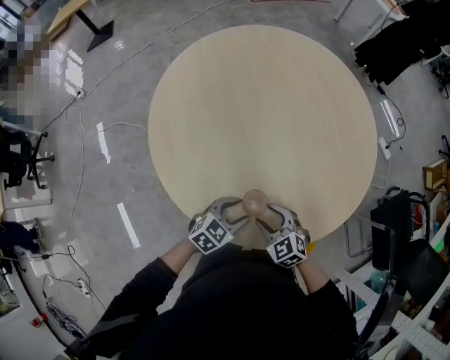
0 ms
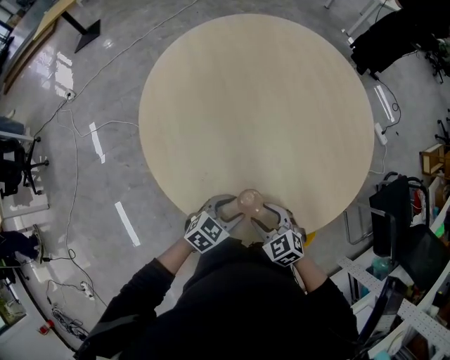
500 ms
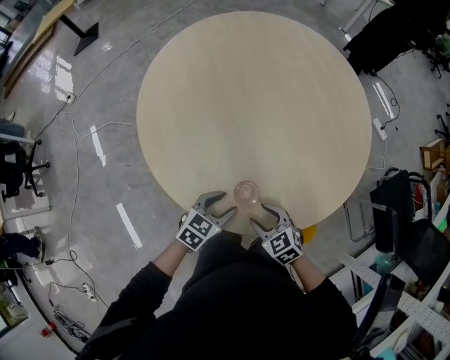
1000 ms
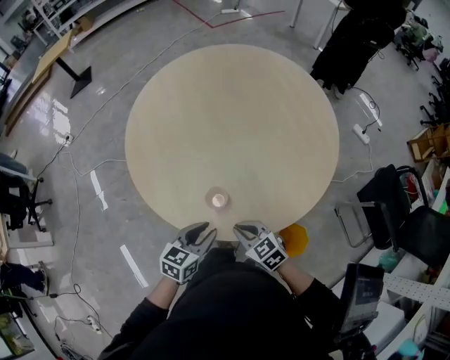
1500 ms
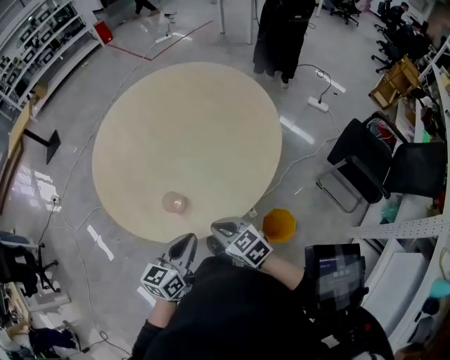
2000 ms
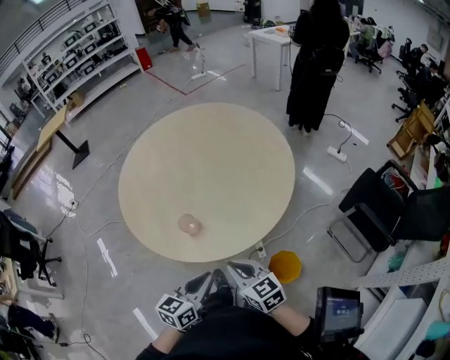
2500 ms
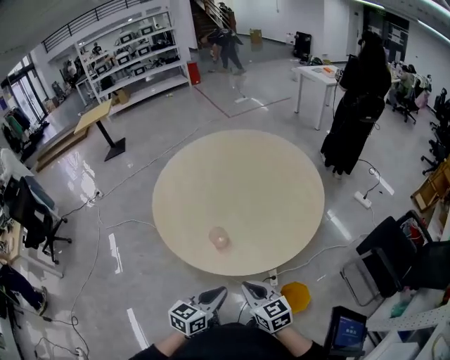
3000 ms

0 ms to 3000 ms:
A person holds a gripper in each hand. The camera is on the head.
0 ms to 1500 ms: The left gripper goes approximately 10 cm backward and upward, rotates about 20 degrees, and closes; the right gripper goes approximately 10 cm backward, rotates some 20 degrees, and closes its fingers.
1500 ms to 3000 ms: The right gripper shifts about 20 cm backward, upward and to the right, and changes its angle by roughly 20 degrees. Meanwhile the left gripper shifts about 20 cm backward, to the right and upward, and closes its fingers.

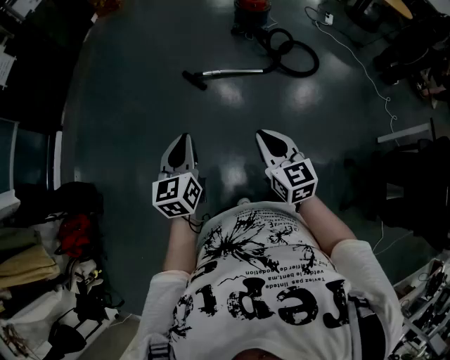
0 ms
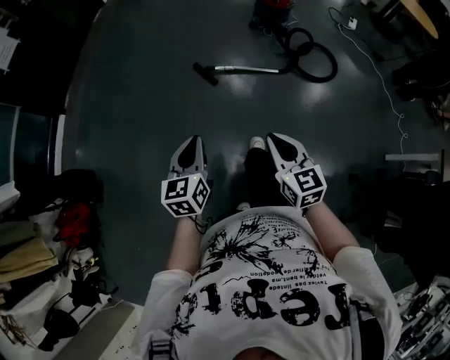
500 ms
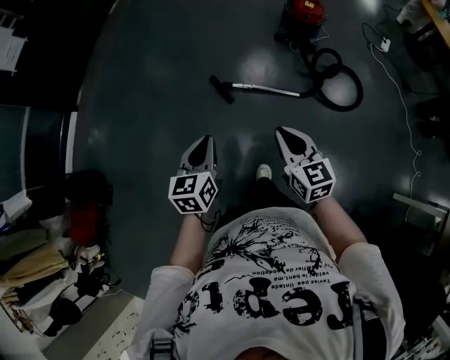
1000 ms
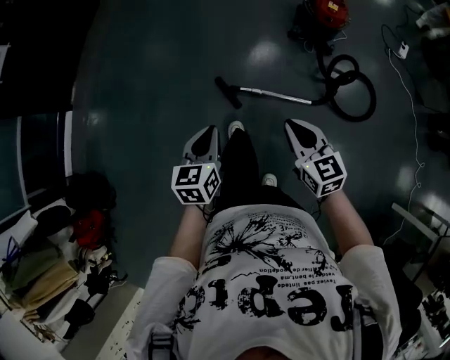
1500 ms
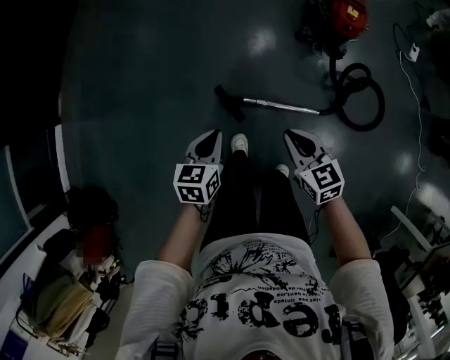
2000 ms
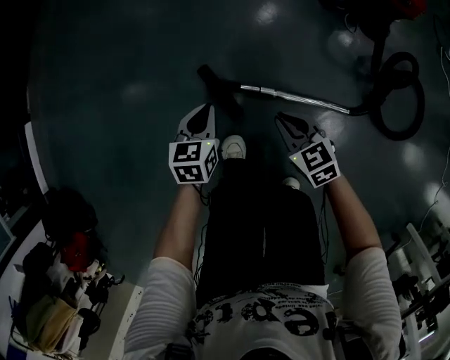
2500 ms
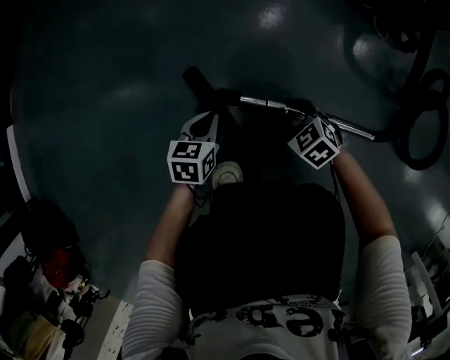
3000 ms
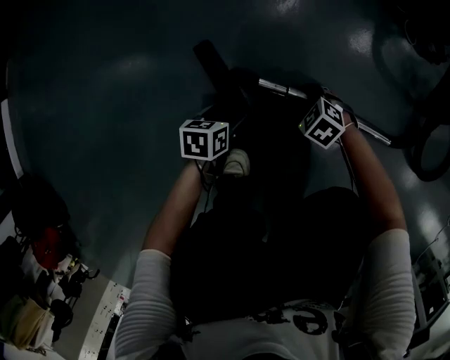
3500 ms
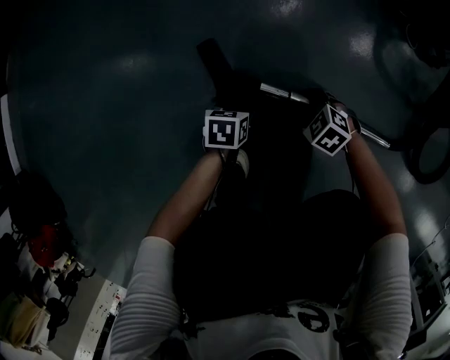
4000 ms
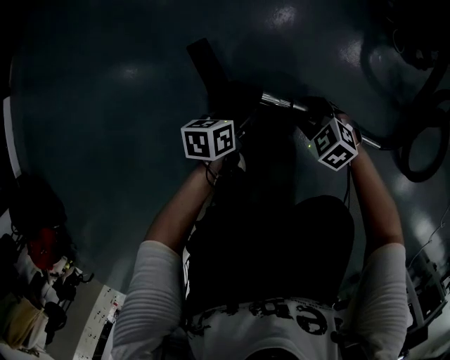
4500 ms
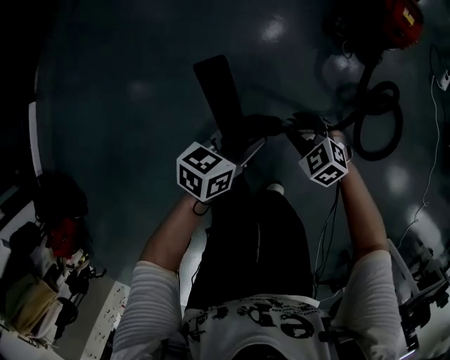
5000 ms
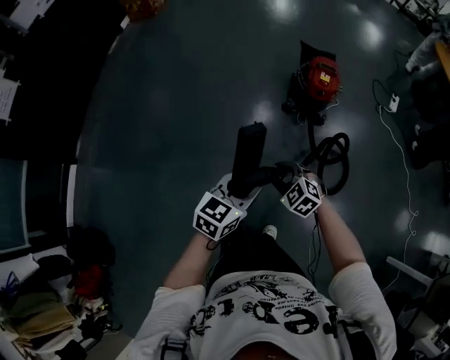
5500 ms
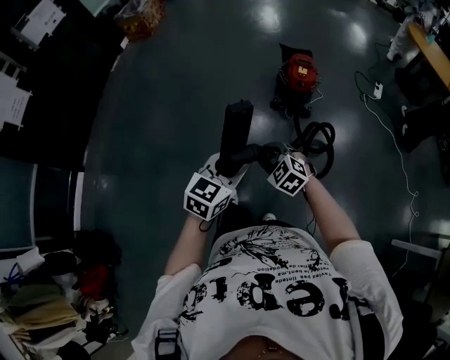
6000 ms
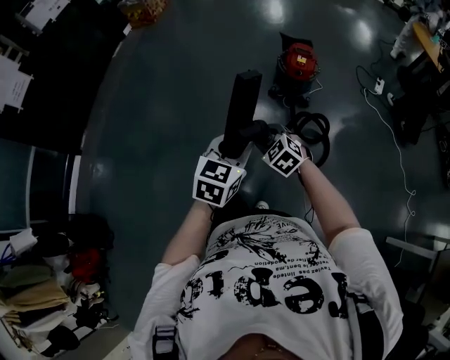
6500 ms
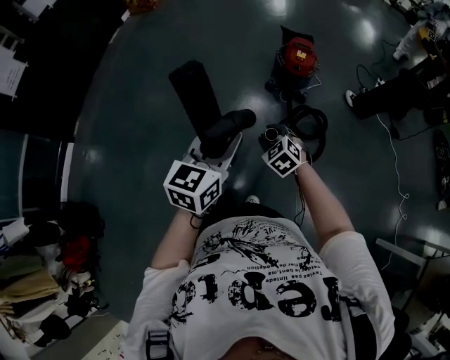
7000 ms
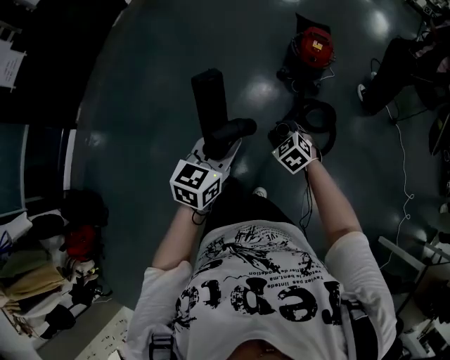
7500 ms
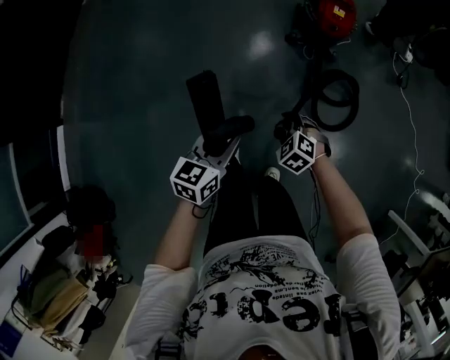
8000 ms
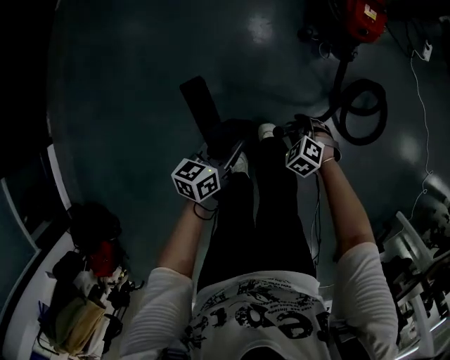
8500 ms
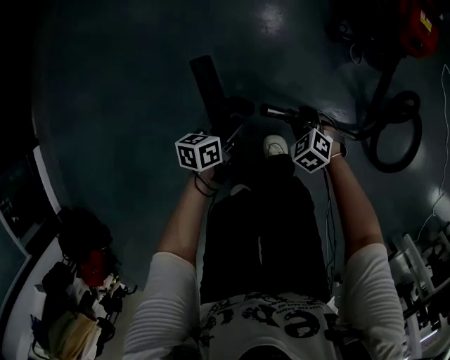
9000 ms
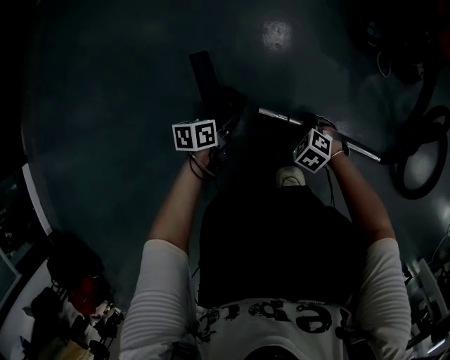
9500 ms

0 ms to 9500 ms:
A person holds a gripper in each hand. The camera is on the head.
0 ms to 2000 ms: Both grippers are carried forward, roughly 70 cm. The right gripper changes its angle by about 20 degrees, while the left gripper changes its angle by roughly 30 degrees.
2000 ms to 4000 ms: The grippers both shift downward by about 70 cm. The right gripper angles its fingers downward, by roughly 30 degrees, and opens up. Meanwhile the left gripper turns by about 30 degrees, and opens.
4000 ms to 5500 ms: Both grippers travel together upward, about 80 cm. The right gripper swivels about 20 degrees. Meanwhile the left gripper points its fingers about 40 degrees further upward, and closes its fingers.
5500 ms to 7500 ms: The right gripper is displaced to the right and backward by some 10 cm. Meanwhile the left gripper moves backward and upward, about 10 cm.
7500 ms to 9500 ms: The two grippers go some 80 cm downward. The left gripper twists some 40 degrees counterclockwise, seen from behind; the right gripper changes its angle by approximately 20 degrees.

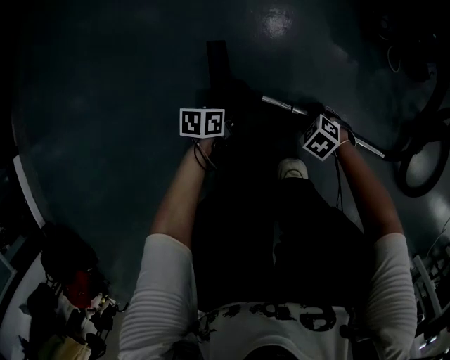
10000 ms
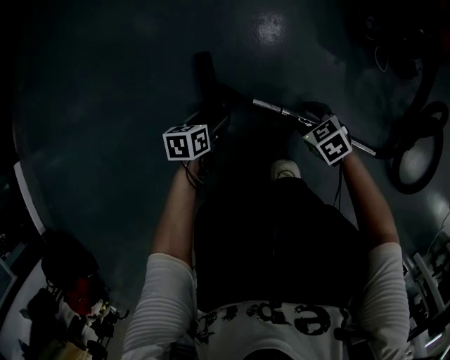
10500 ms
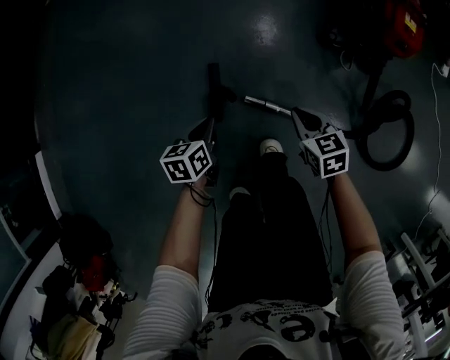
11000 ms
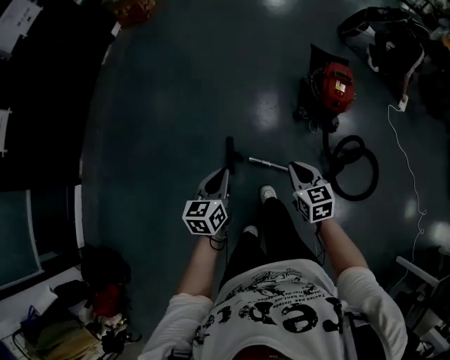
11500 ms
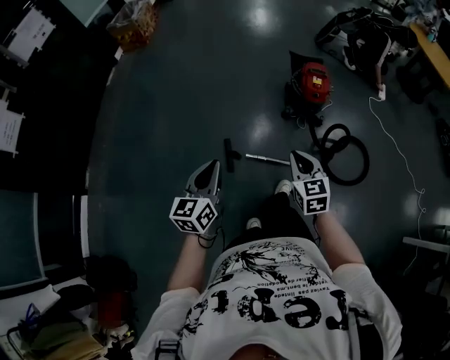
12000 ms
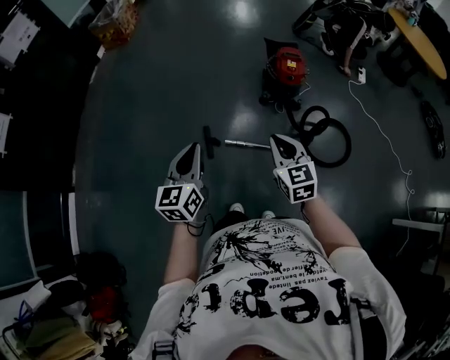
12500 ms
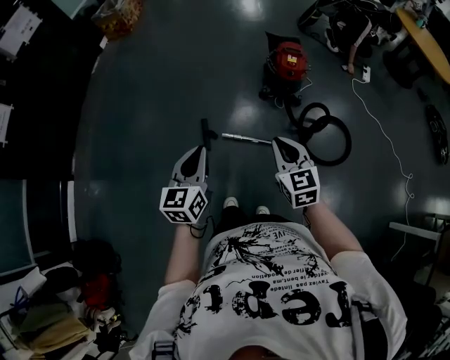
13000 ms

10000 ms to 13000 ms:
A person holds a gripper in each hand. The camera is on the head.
10000 ms to 11500 ms: The grippers both shift upward by roughly 80 cm. The right gripper angles its fingers upward, by roughly 40 degrees, and closes. The left gripper swivels some 40 degrees, and opens and closes again.
11500 ms to 13000 ms: Both grippers travel together backward, upward and to the right, roughly 30 cm.

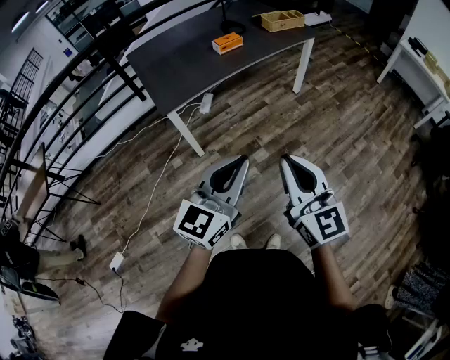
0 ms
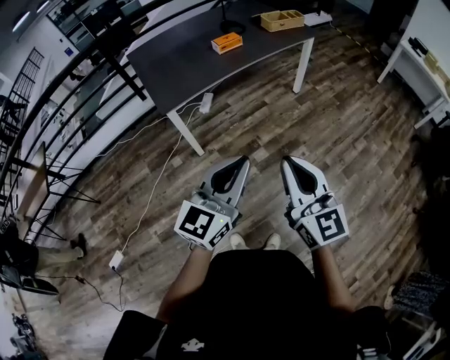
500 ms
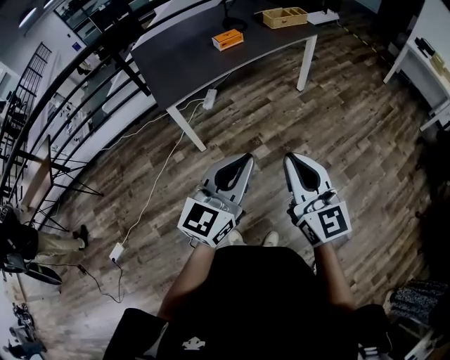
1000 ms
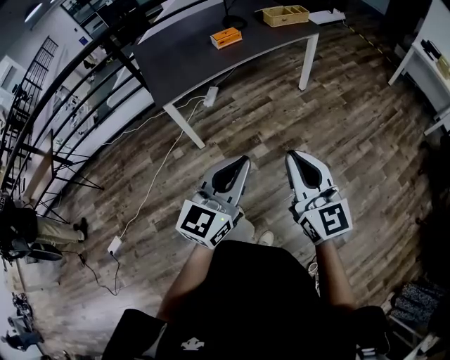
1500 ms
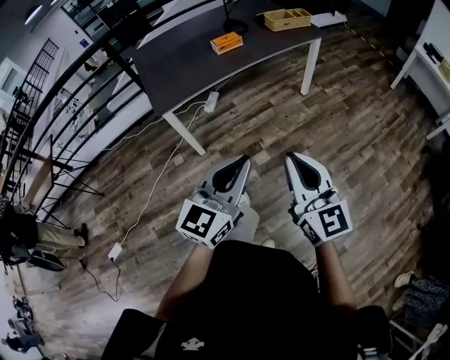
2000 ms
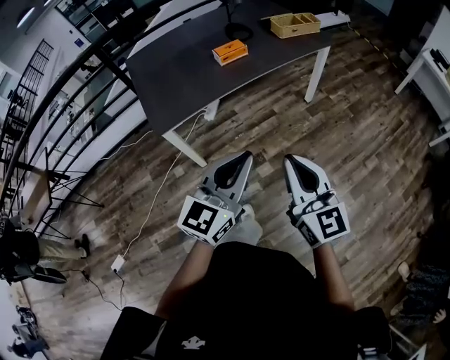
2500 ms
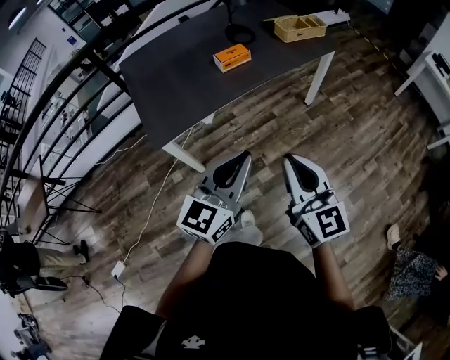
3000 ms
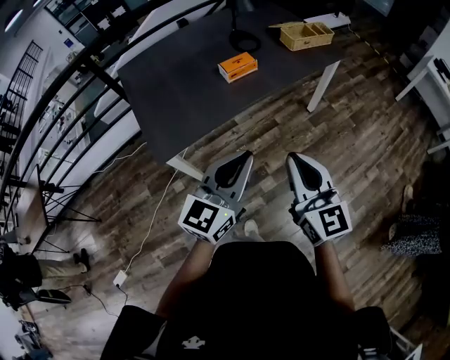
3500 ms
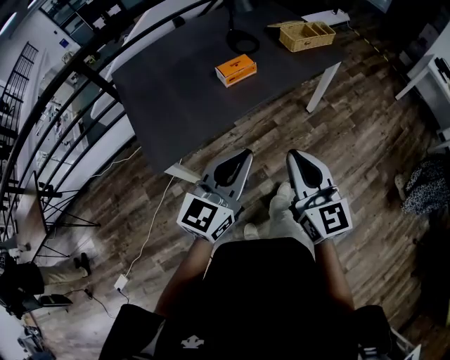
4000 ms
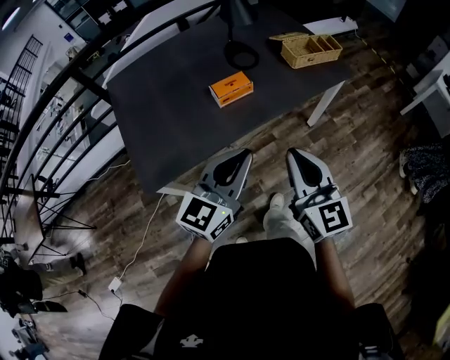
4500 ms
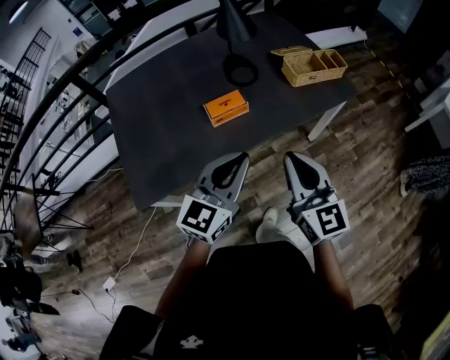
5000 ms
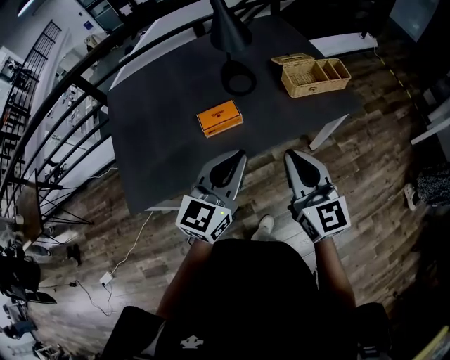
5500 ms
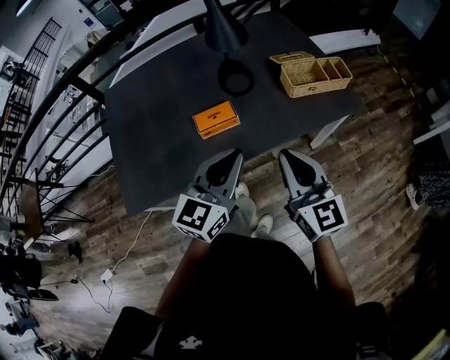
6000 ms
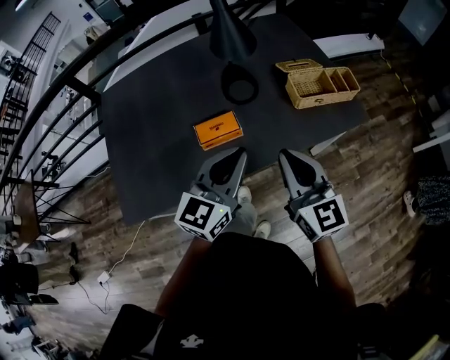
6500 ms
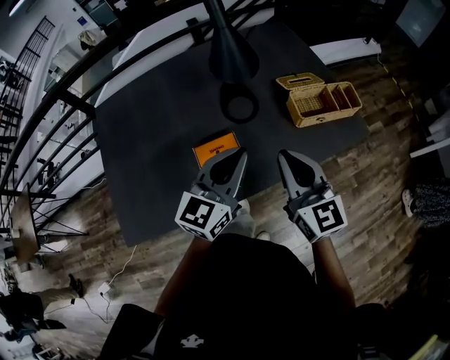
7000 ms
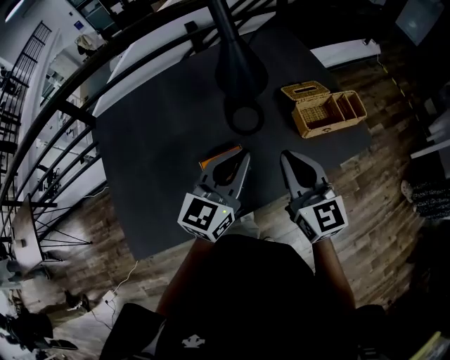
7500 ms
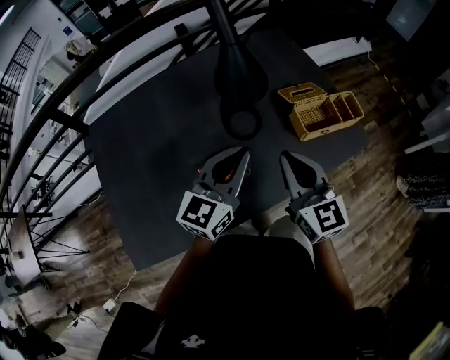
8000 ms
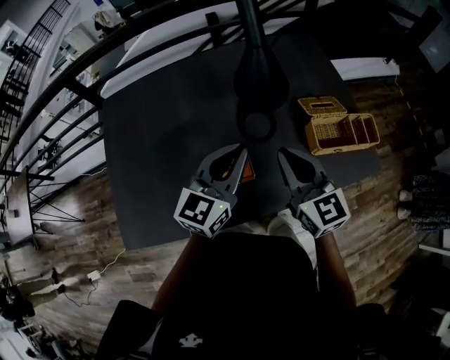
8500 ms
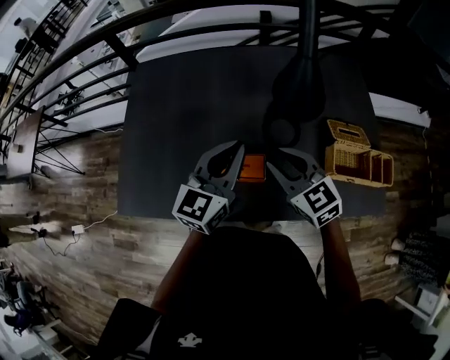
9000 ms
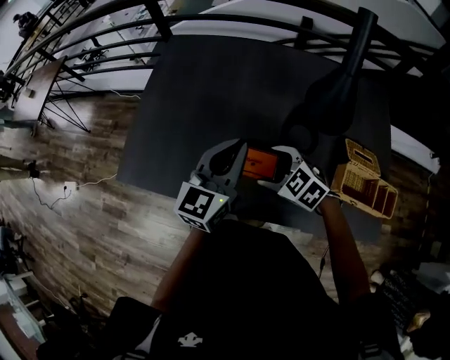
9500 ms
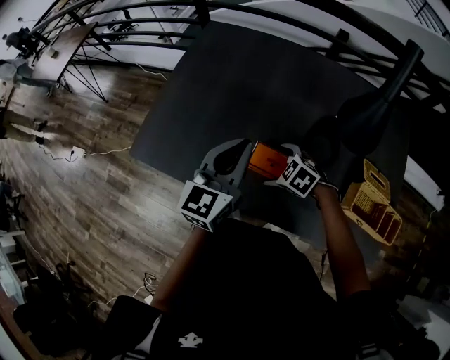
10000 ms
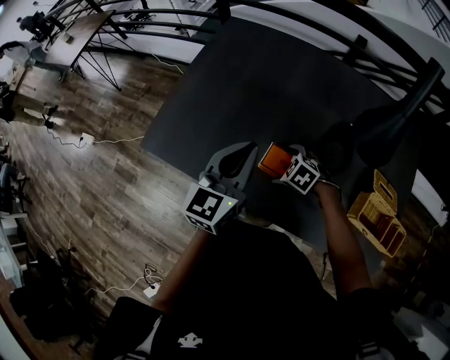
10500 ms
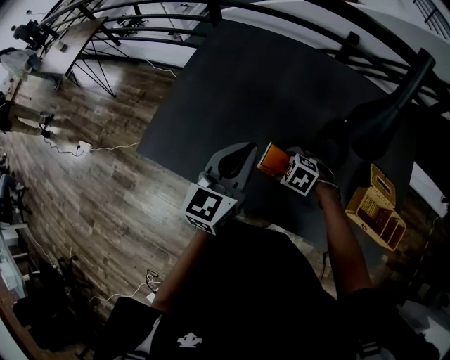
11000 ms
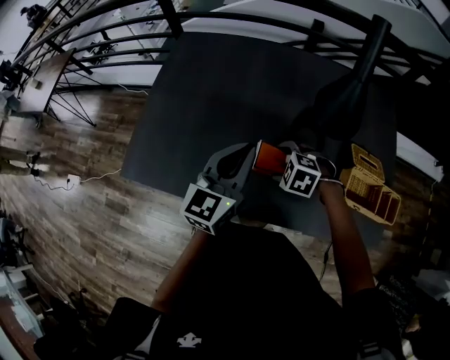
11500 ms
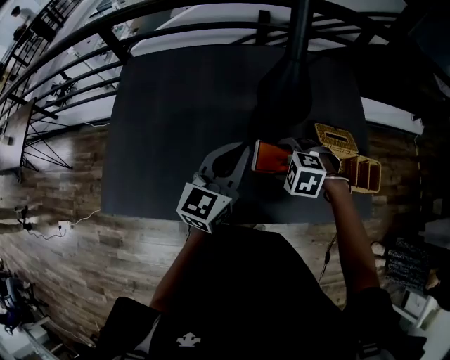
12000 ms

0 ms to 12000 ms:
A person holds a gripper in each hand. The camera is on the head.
0 ms to 2000 ms: The left gripper is displaced to the right by some 10 cm. Meanwhile the right gripper goes approximately 10 cm to the right and forward.
2000 ms to 4000 ms: Both grippers move forward, approximately 35 cm.
4000 ms to 6000 ms: The right gripper shifts some 30 cm forward. The left gripper travels forward and to the right by approximately 30 cm.
6000 ms to 8000 ms: Both grippers travel together forward, some 20 cm.
8000 ms to 10000 ms: The left gripper shifts by some 15 cm, and turns by some 50 degrees; the right gripper moves downward, roughly 25 cm, angles its fingers downward, by roughly 50 degrees, and opens.
10000 ms to 12000 ms: The right gripper moves approximately 15 cm; the left gripper moves some 15 cm, and swivels some 20 degrees.
